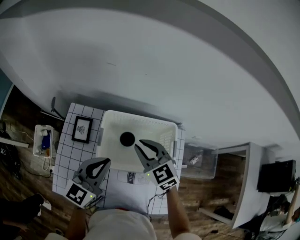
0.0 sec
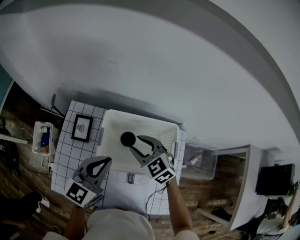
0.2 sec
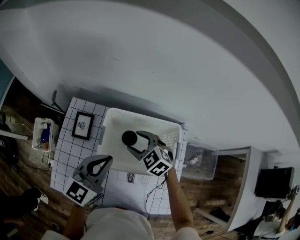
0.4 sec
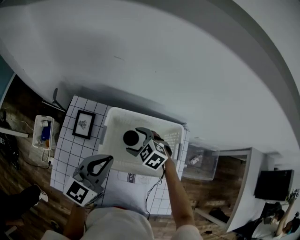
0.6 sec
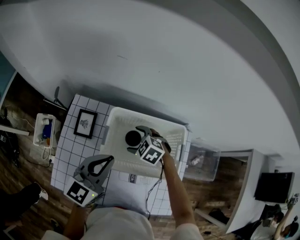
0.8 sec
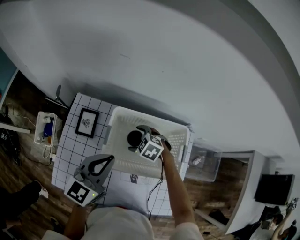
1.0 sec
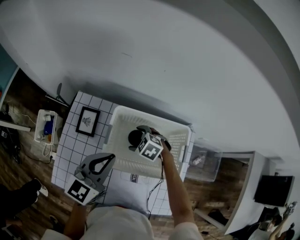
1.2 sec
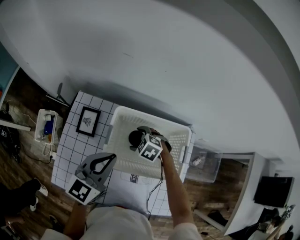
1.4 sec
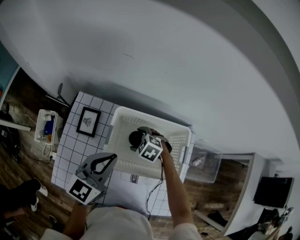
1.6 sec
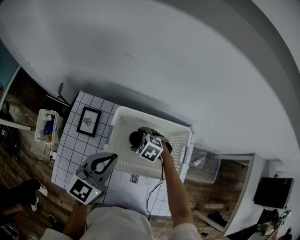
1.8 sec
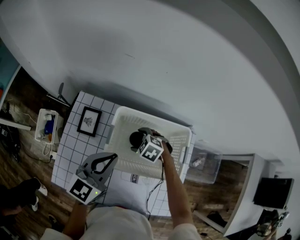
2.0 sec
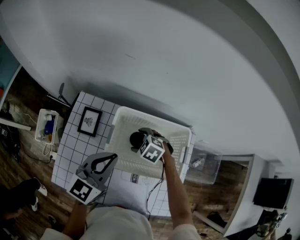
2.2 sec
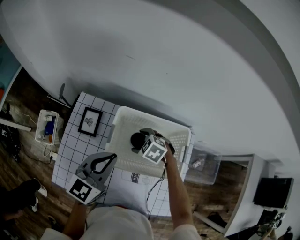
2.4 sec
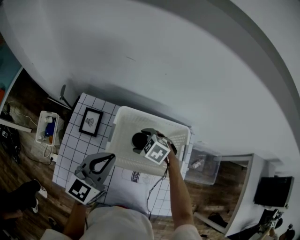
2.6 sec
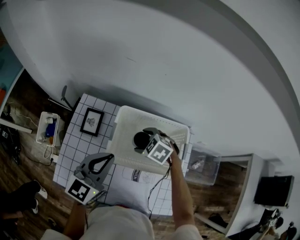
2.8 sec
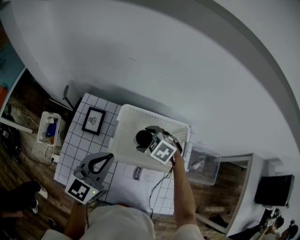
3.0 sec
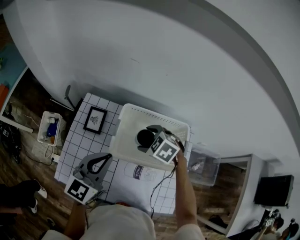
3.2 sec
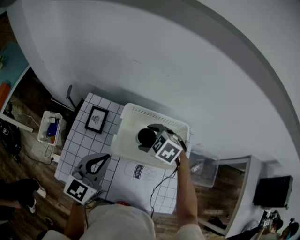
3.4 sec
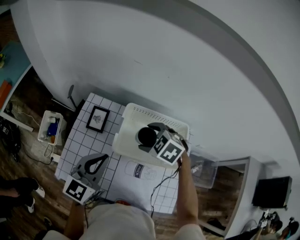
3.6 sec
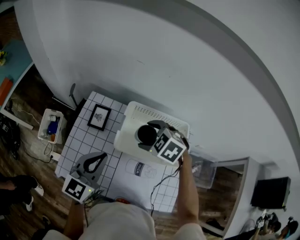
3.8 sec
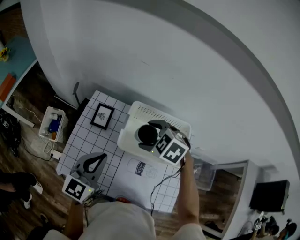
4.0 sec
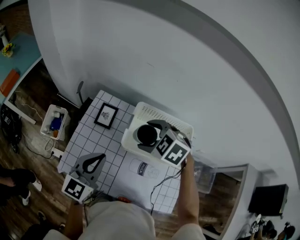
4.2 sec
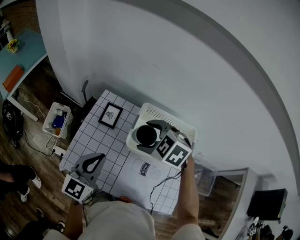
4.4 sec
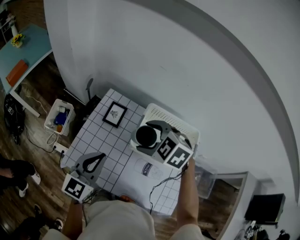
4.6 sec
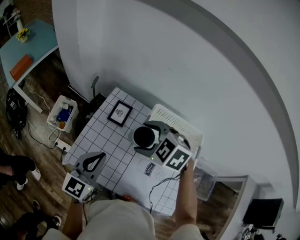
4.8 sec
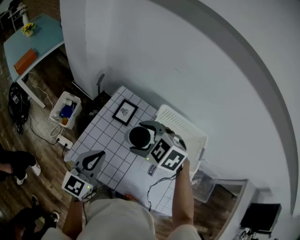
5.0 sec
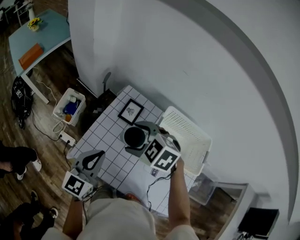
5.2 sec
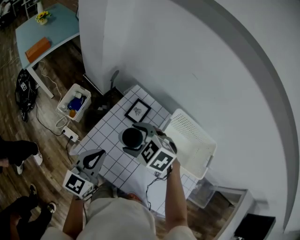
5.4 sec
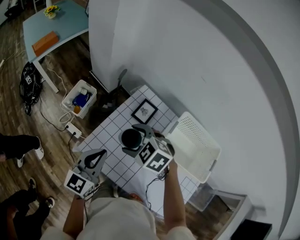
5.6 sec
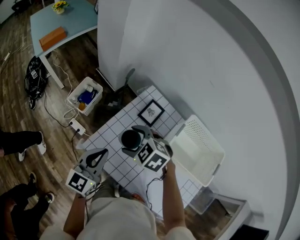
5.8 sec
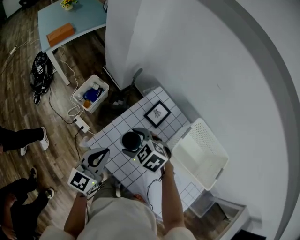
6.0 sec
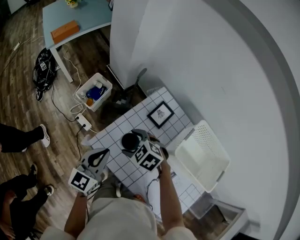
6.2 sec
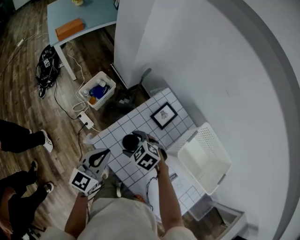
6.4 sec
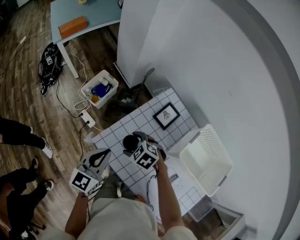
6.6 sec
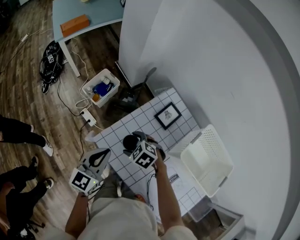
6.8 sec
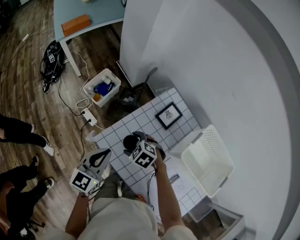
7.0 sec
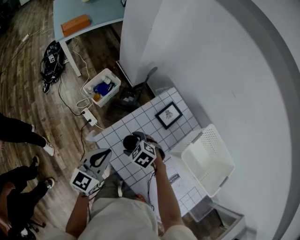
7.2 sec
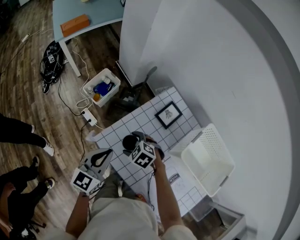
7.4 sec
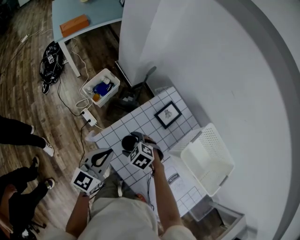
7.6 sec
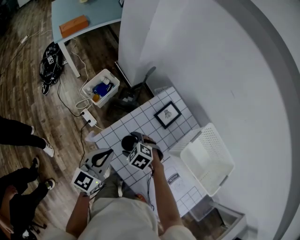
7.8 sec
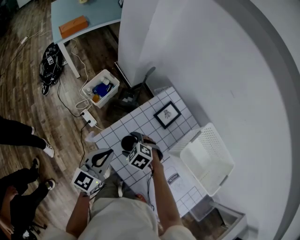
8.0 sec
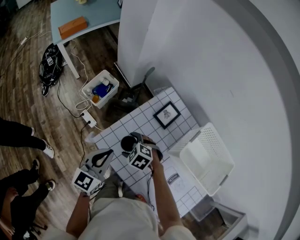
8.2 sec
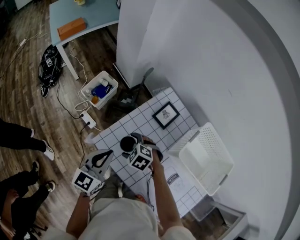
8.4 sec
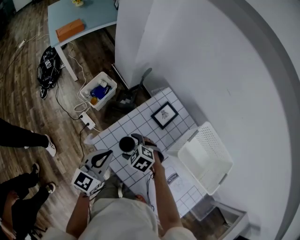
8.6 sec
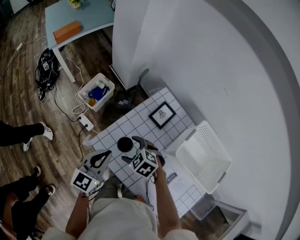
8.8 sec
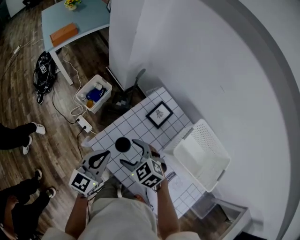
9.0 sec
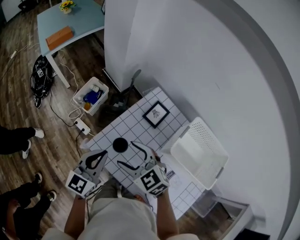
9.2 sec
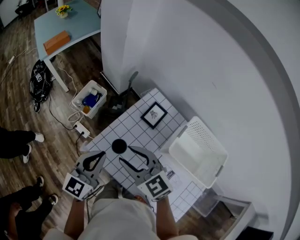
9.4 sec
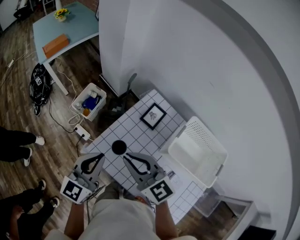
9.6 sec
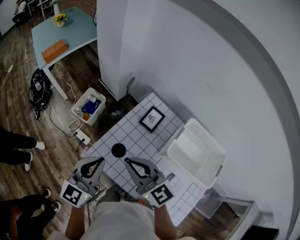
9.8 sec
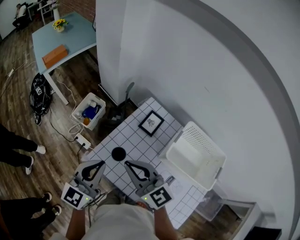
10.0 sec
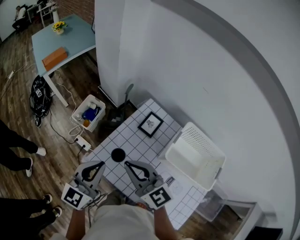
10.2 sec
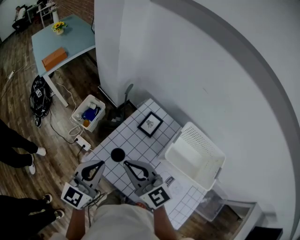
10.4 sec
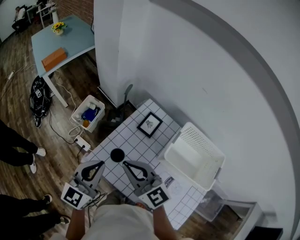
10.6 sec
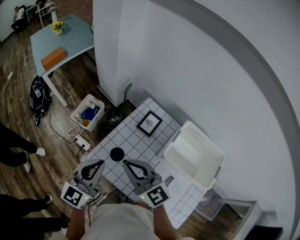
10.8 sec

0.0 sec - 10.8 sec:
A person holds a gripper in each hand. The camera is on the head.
0.0 sec - 1.6 sec: The right gripper shifts roughly 20 cm downward, tips its fingers downward by some 40 degrees, and opens.
1.6 sec - 3.0 sec: The right gripper moves upward, approximately 10 cm. Meanwhile the left gripper moves some 5 cm.
3.0 sec - 4.6 sec: The right gripper is displaced upward and to the left by about 20 cm, while the left gripper shifts roughly 15 cm to the left and backward.
4.6 sec - 6.2 sec: The right gripper changes place by some 30 cm; the left gripper changes place by roughly 20 cm, and swivels some 20 degrees.
6.2 sec - 7.8 sec: The right gripper travels downward by approximately 10 cm.
7.8 sec - 9.2 sec: The right gripper travels upward by some 20 cm, and rotates some 30 degrees.
9.2 sec - 10.8 sec: The two grippers go some 10 cm upward. The right gripper changes its angle by some 30 degrees, and closes its fingers.

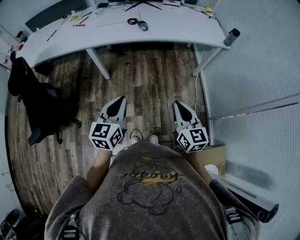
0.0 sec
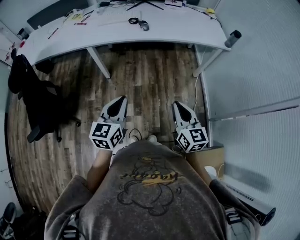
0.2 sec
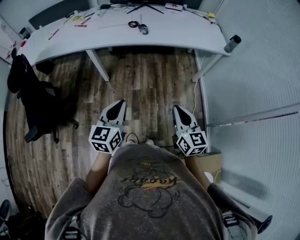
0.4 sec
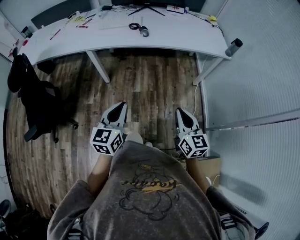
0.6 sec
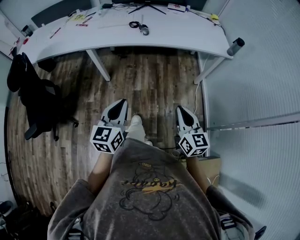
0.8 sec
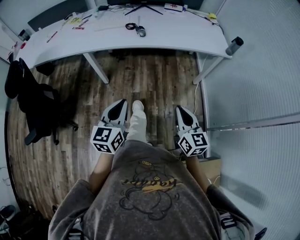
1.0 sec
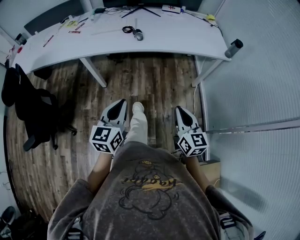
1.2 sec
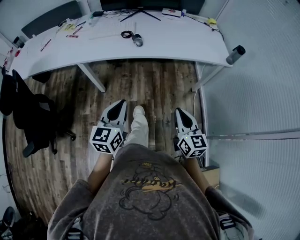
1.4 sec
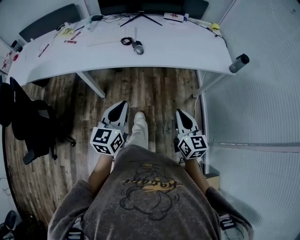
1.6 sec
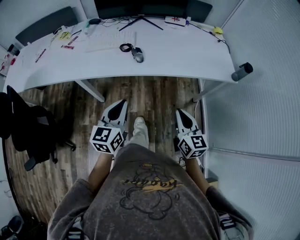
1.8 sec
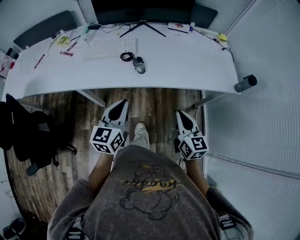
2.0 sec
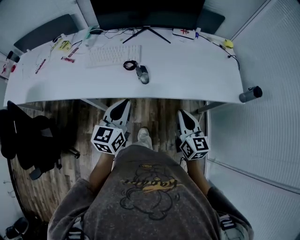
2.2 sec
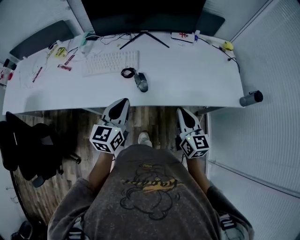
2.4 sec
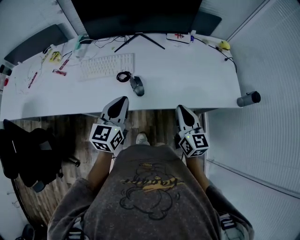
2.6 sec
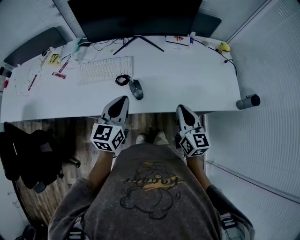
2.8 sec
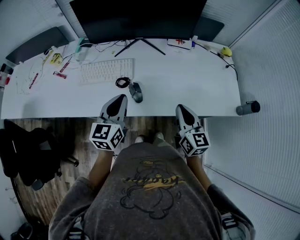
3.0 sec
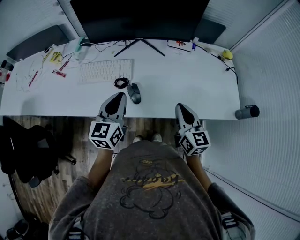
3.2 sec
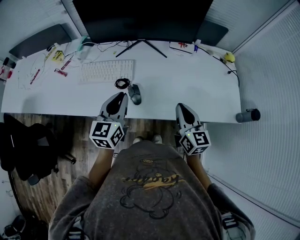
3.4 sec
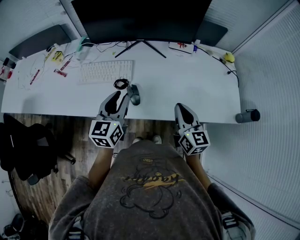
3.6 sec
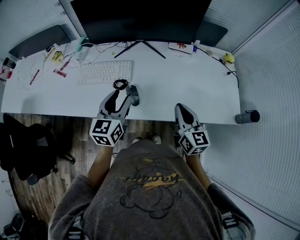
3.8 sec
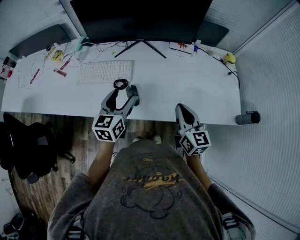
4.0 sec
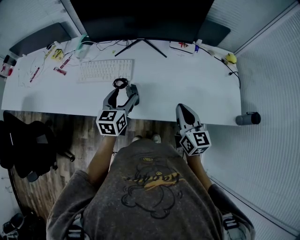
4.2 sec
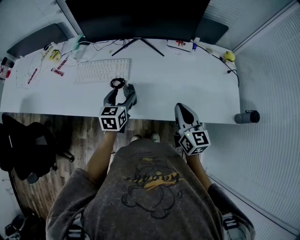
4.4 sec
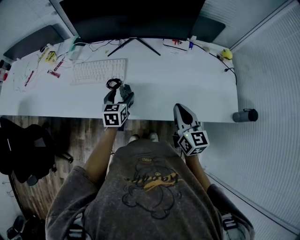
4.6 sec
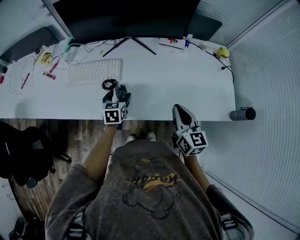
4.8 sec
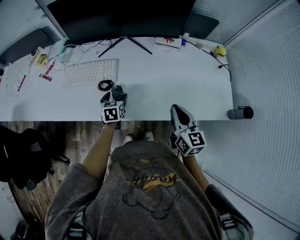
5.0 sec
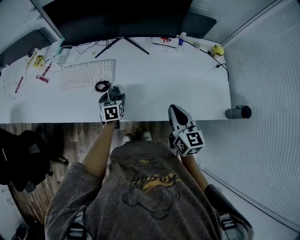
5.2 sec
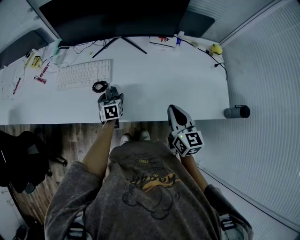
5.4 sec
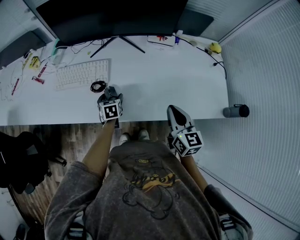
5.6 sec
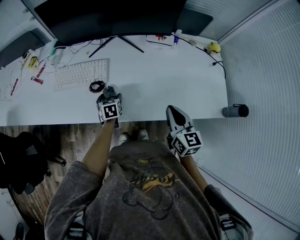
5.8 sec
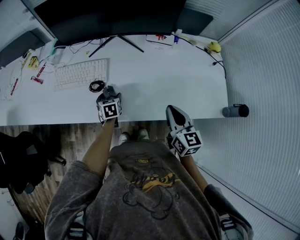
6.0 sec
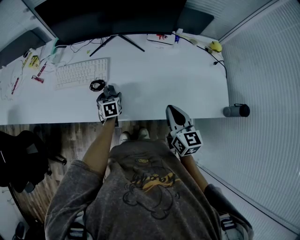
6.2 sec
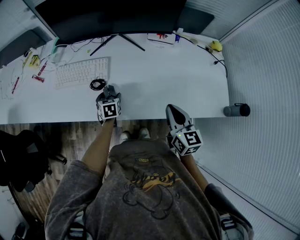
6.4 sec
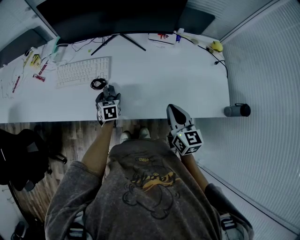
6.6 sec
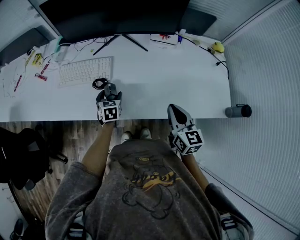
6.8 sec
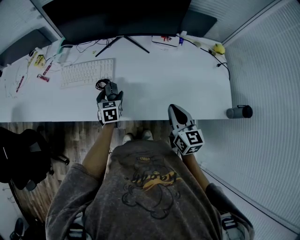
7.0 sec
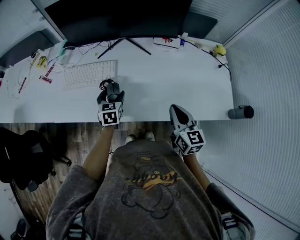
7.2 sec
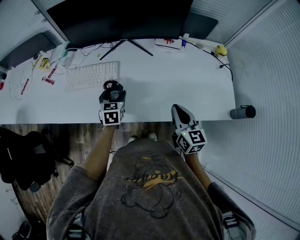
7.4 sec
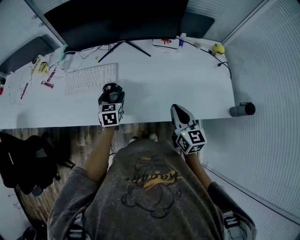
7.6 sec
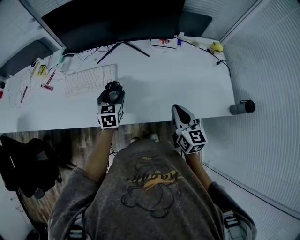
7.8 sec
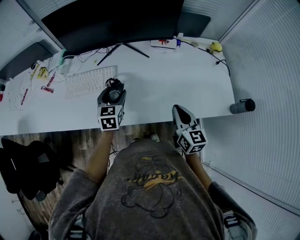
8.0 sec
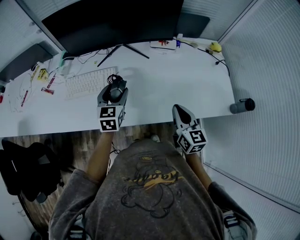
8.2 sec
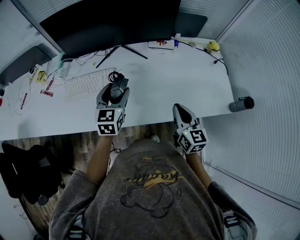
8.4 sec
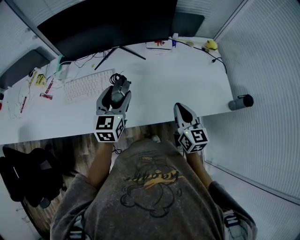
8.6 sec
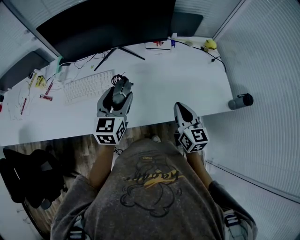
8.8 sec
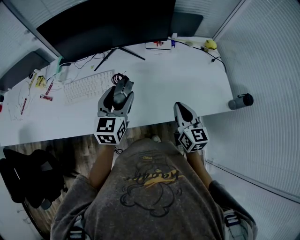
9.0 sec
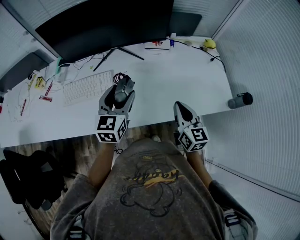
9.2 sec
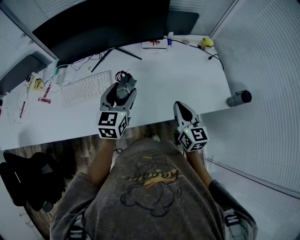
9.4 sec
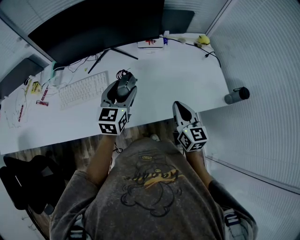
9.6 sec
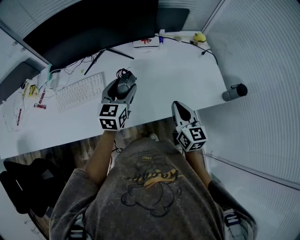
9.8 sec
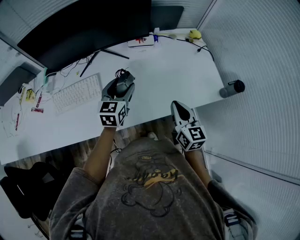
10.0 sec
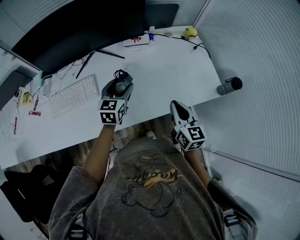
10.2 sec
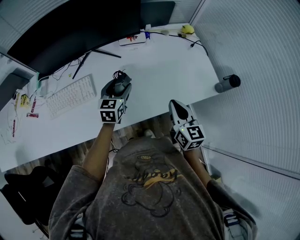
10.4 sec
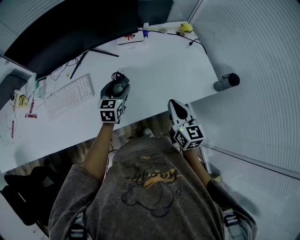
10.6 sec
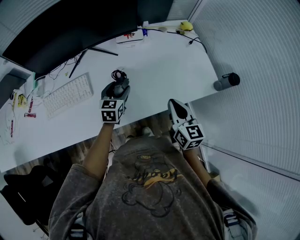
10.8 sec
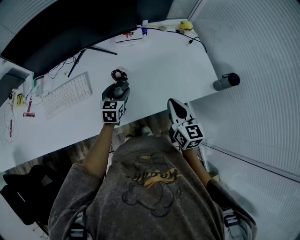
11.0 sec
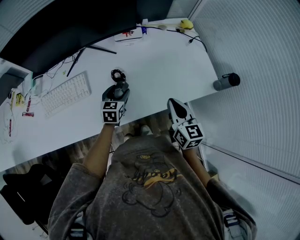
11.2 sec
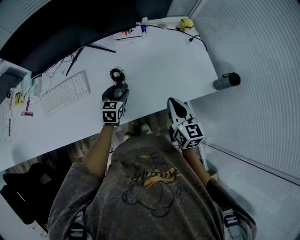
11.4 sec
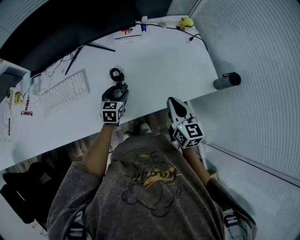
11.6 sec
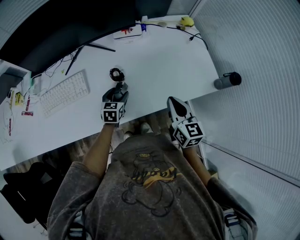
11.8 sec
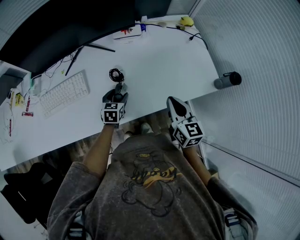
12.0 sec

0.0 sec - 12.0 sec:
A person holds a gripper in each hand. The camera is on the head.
0.0 sec - 1.6 sec: The grippers both shift forward by roughly 20 cm.
1.6 sec - 3.0 sec: Both grippers travel together forward, some 35 cm.
3.0 sec - 4.4 sec: The left gripper travels downward and forward by some 15 cm, and opens.
4.4 sec - 6.0 sec: The right gripper ends up approximately 5 cm from where it was. The left gripper travels downward by some 15 cm, and rotates about 20 degrees.
6.0 sec - 7.6 sec: The left gripper is displaced upward by some 10 cm.
7.6 sec - 9.0 sec: The left gripper heads upward and to the right, covering roughly 15 cm, and swivels some 30 degrees.
9.0 sec - 10.4 sec: The left gripper travels downward, to the right and forward by approximately 15 cm. The right gripper heads to the right, covering some 5 cm.
10.4 sec - 12.0 sec: The left gripper travels downward by approximately 15 cm.

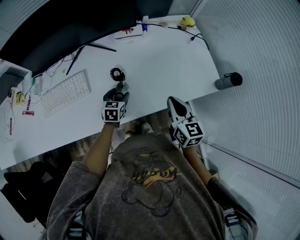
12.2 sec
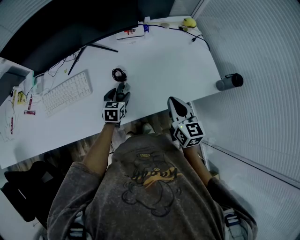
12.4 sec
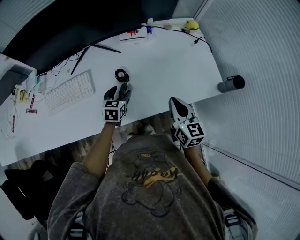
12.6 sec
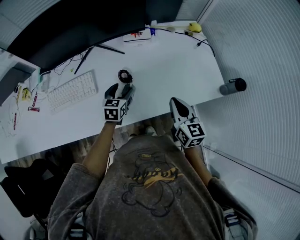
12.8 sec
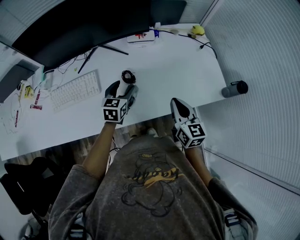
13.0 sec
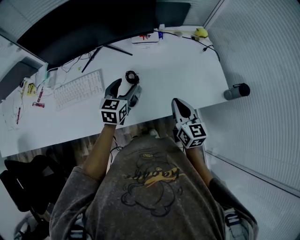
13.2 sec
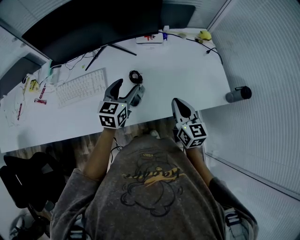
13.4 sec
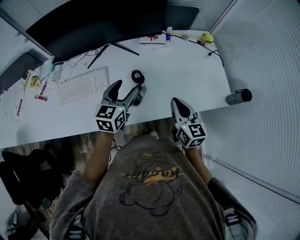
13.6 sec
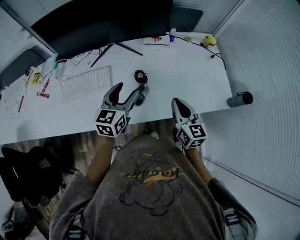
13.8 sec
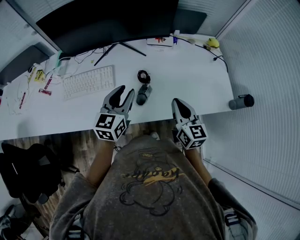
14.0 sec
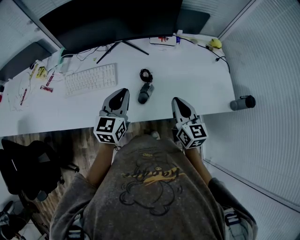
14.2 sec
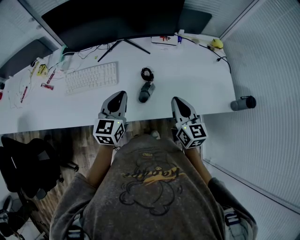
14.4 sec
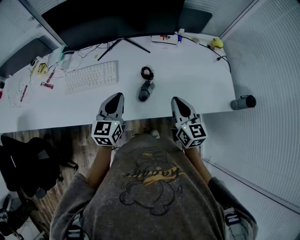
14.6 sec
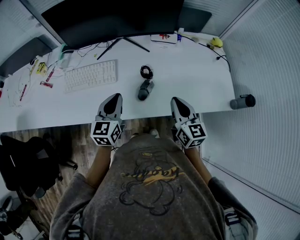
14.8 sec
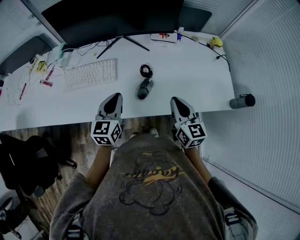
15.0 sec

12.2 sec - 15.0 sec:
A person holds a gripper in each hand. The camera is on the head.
12.2 sec - 13.6 sec: The right gripper shifts about 5 cm to the left. Meanwhile the left gripper shifts some 20 cm upward, and turns by some 20 degrees.
13.6 sec - 15.0 sec: The left gripper travels to the left and backward by approximately 10 cm, and closes.
